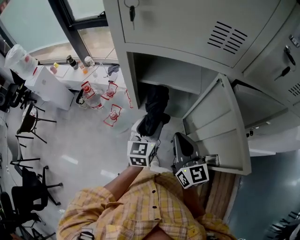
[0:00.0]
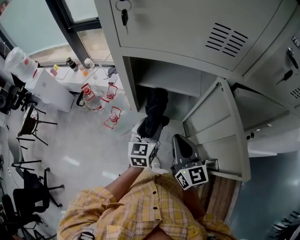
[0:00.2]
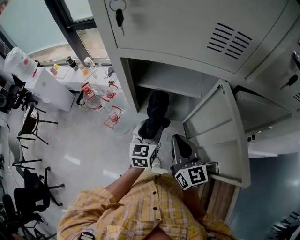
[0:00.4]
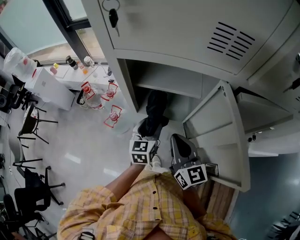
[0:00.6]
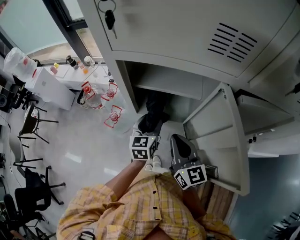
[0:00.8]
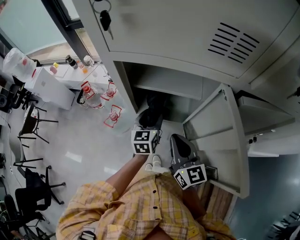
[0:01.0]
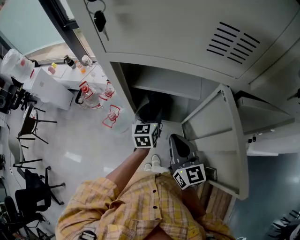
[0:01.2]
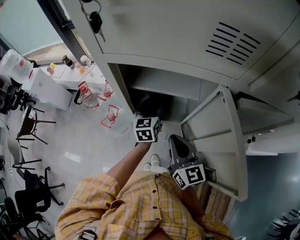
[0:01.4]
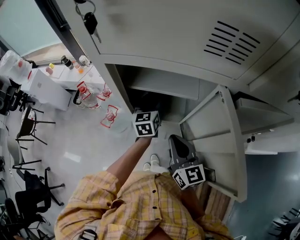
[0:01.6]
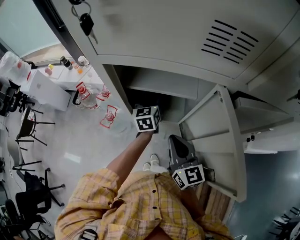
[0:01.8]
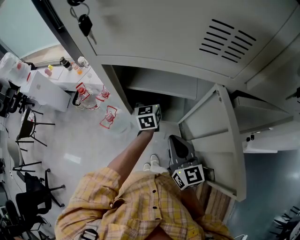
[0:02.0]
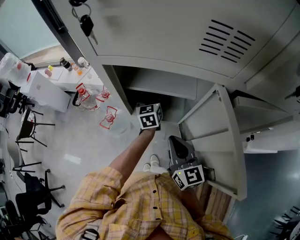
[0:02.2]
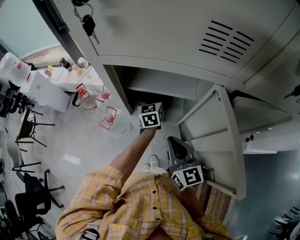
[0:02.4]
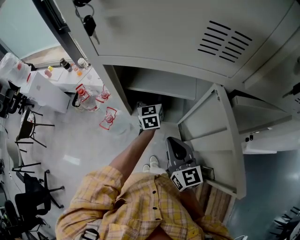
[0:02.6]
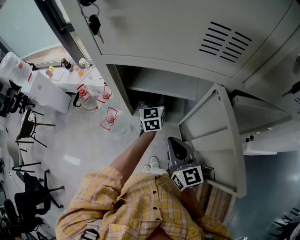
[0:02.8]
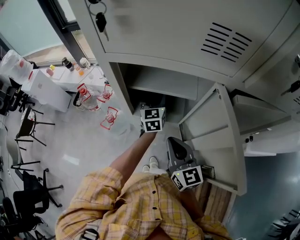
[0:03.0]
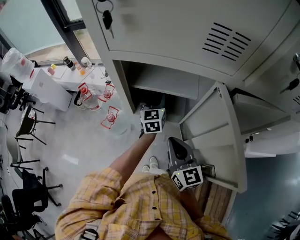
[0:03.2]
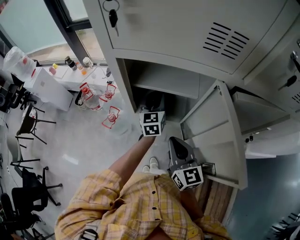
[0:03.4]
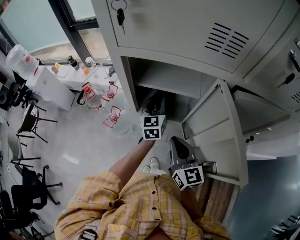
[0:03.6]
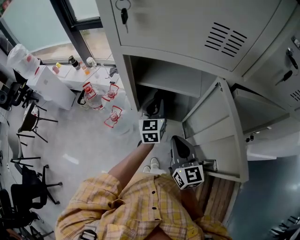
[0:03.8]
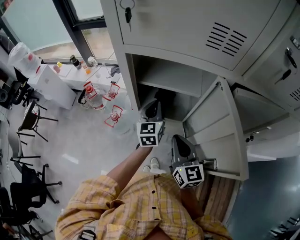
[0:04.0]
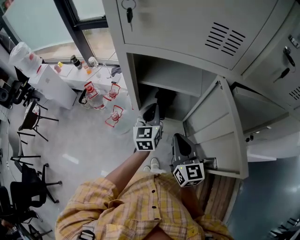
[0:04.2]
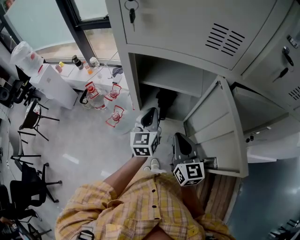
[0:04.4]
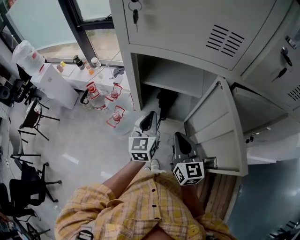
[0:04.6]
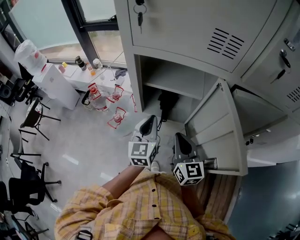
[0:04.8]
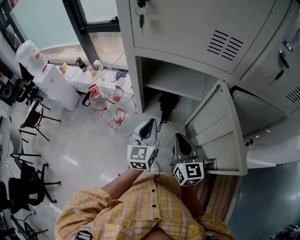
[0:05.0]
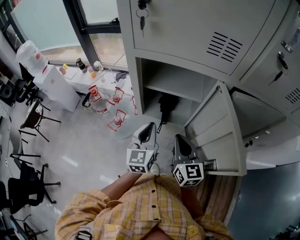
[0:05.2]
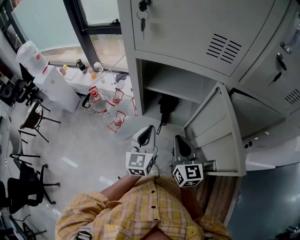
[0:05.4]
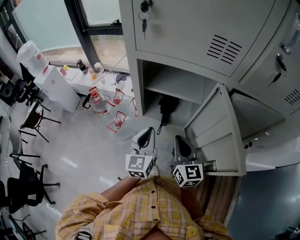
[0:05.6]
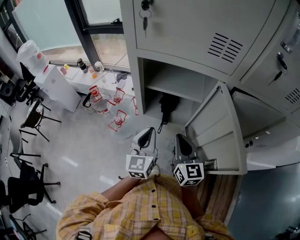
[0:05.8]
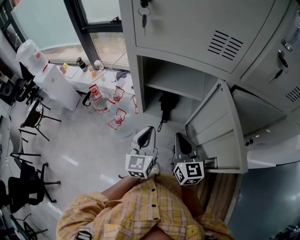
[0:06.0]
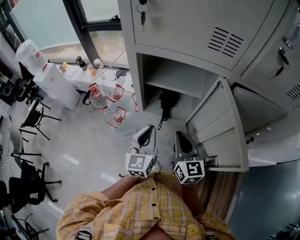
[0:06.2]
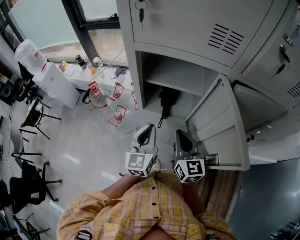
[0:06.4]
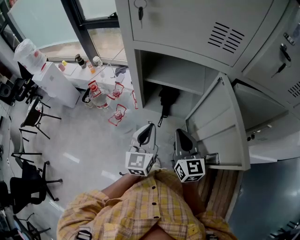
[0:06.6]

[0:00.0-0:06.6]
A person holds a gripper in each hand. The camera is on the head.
0.0 to 1.6 s: The right gripper moves approximately 5 cm. The left gripper travels forward by roughly 15 cm.
1.6 to 3.2 s: The grippers stay close to where they were, moving slightly.
3.2 to 5.0 s: The left gripper shifts about 20 cm backward and to the left, and closes.
5.0 to 6.6 s: The grippers make only small movements.

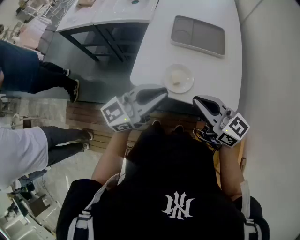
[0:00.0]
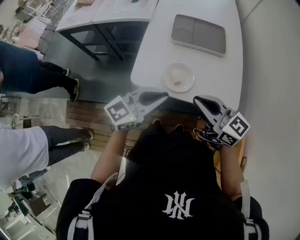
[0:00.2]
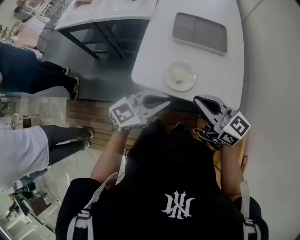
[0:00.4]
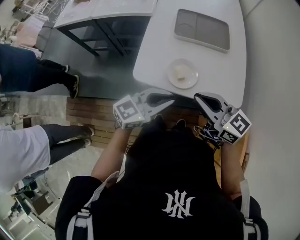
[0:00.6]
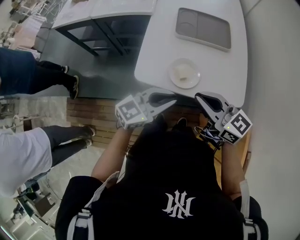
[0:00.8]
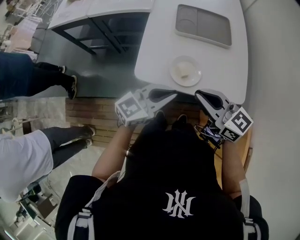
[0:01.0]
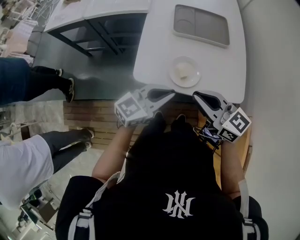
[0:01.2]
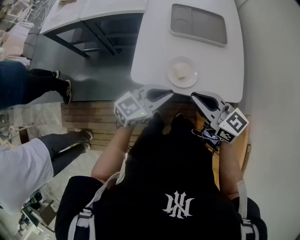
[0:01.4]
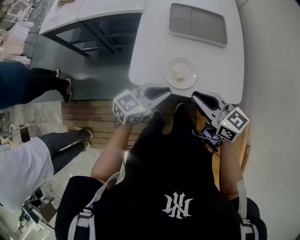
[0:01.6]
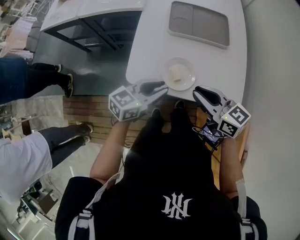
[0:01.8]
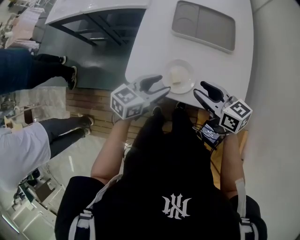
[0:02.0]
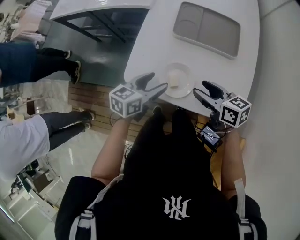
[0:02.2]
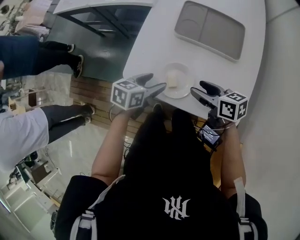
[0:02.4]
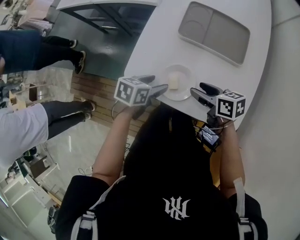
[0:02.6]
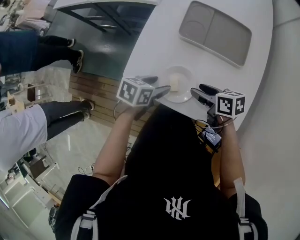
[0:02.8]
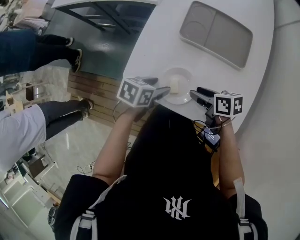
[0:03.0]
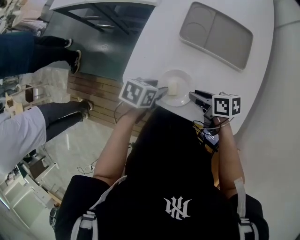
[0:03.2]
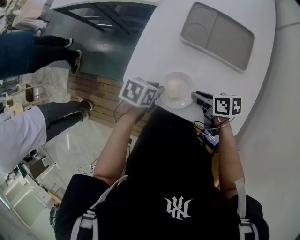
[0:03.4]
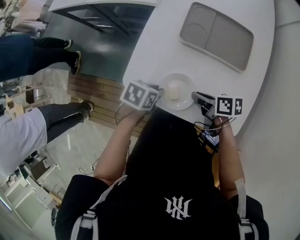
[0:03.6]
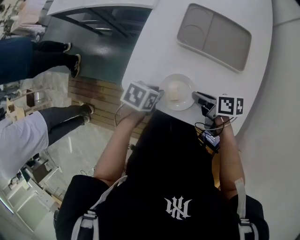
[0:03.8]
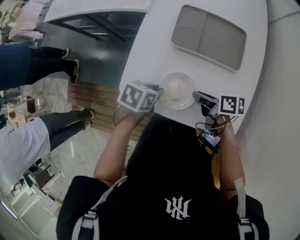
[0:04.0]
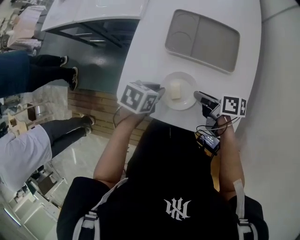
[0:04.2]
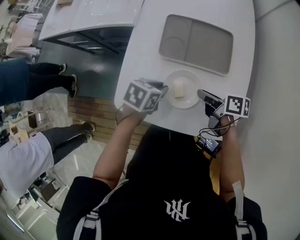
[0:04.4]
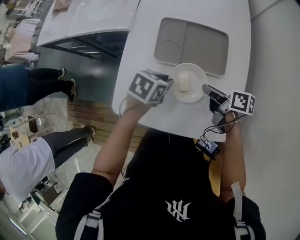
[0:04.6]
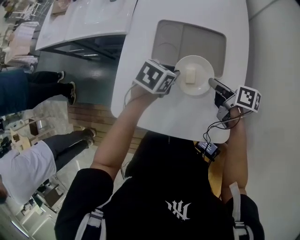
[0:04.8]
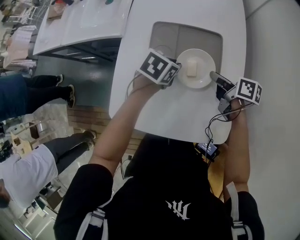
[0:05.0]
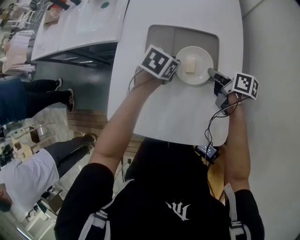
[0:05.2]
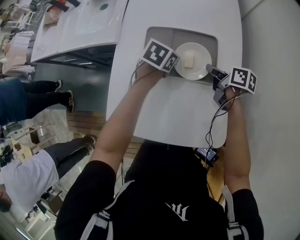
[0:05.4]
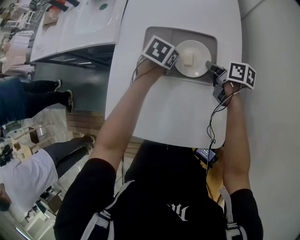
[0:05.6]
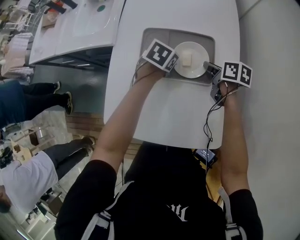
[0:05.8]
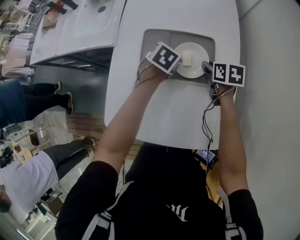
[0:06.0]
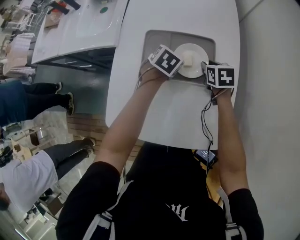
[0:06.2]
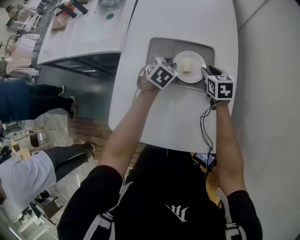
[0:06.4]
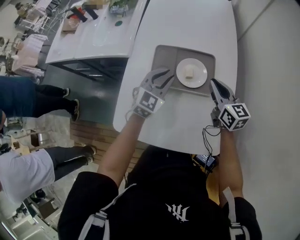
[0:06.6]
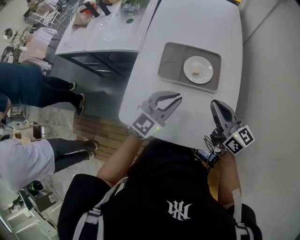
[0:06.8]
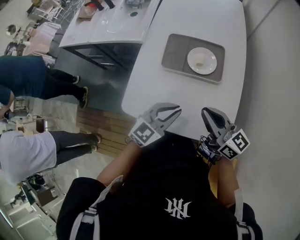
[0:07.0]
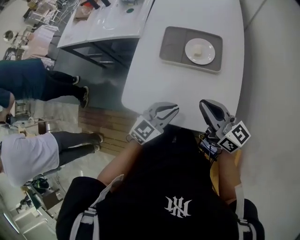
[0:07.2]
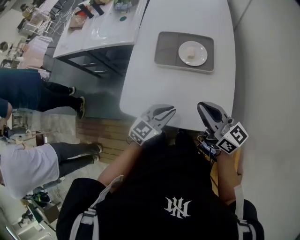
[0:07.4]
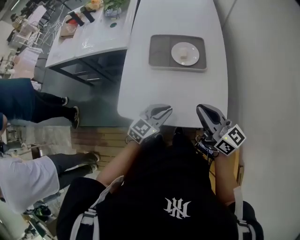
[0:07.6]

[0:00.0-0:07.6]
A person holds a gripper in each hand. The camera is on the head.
0.0 to 1.6 s: The left gripper shifts about 15 cm downward, and swivels some 30 degrees. Meanwhile the right gripper goes roughly 5 cm downward.
1.6 to 3.0 s: Both grippers travel together downward, approximately 15 cm. The left gripper tilts its fingers some 40 degrees downward, and opens. The right gripper changes its angle by some 40 degrees, and opens up.
3.0 to 4.6 s: The left gripper changes place by roughly 15 cm, and closes its fingers; the right gripper ends up about 15 cm from where it was, changes its angle by about 30 degrees, and closes up.
4.6 to 6.0 s: Both grippers travel together forward, approximately 15 cm. The right gripper changes its angle by about 40 degrees.
6.0 to 7.6 s: The left gripper travels backward by some 35 cm, and tips its fingers upward by approximately 40 degrees, while the right gripper travels backward and upward by approximately 40 cm, and tips its fingers upward by roughly 50 degrees.

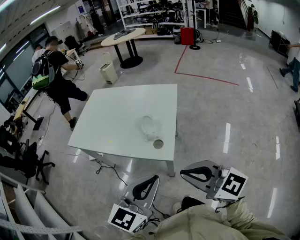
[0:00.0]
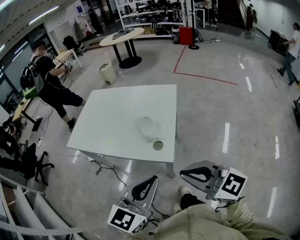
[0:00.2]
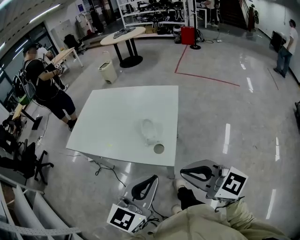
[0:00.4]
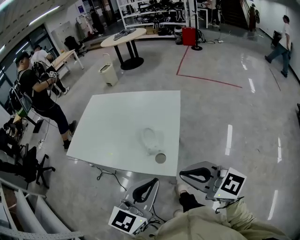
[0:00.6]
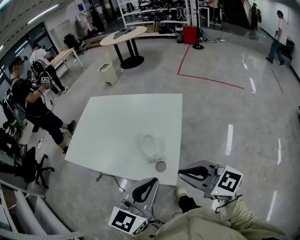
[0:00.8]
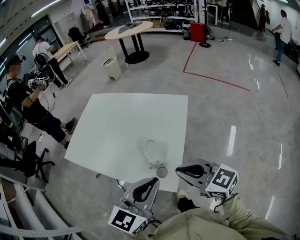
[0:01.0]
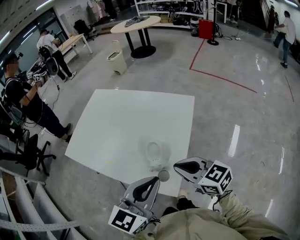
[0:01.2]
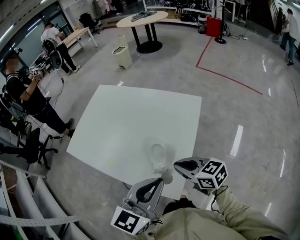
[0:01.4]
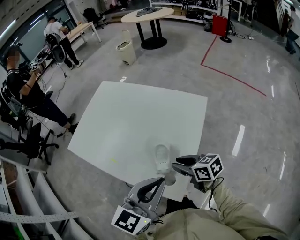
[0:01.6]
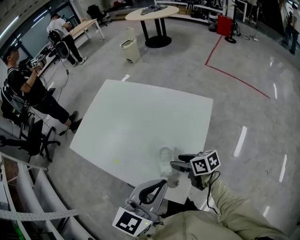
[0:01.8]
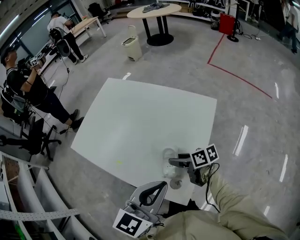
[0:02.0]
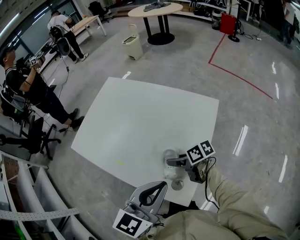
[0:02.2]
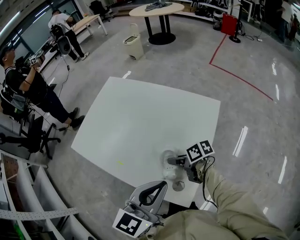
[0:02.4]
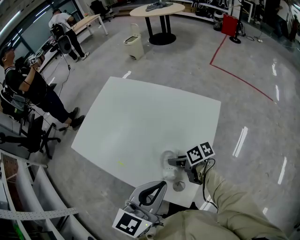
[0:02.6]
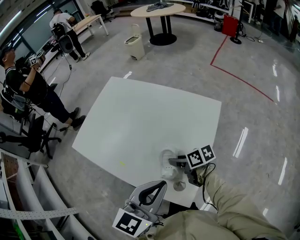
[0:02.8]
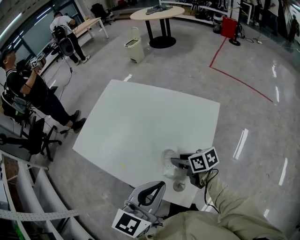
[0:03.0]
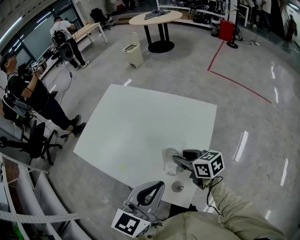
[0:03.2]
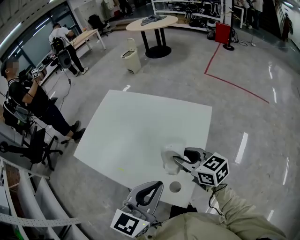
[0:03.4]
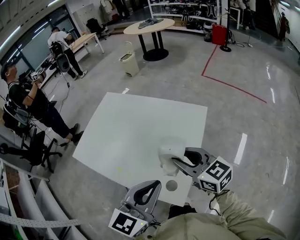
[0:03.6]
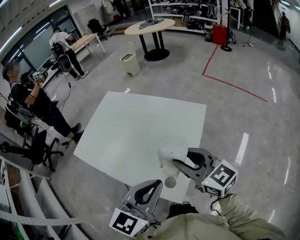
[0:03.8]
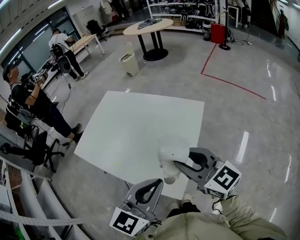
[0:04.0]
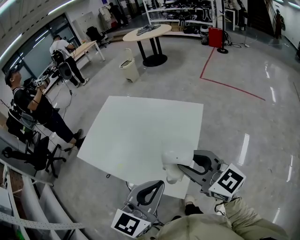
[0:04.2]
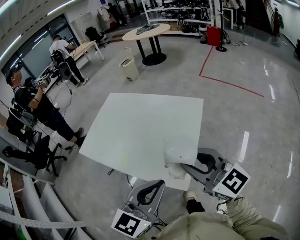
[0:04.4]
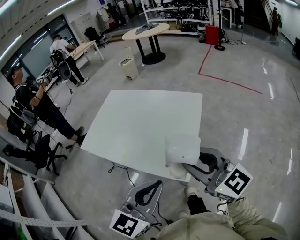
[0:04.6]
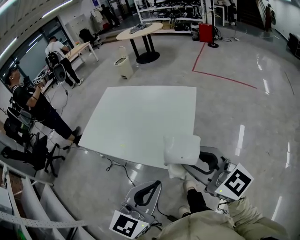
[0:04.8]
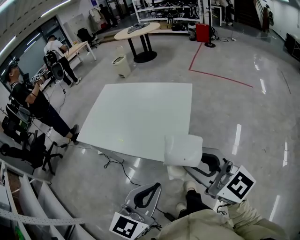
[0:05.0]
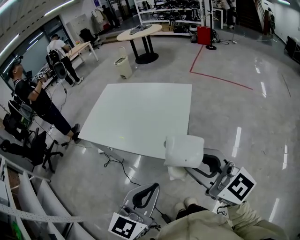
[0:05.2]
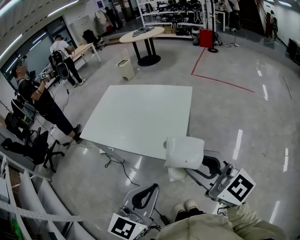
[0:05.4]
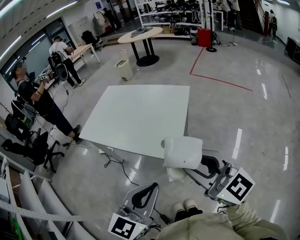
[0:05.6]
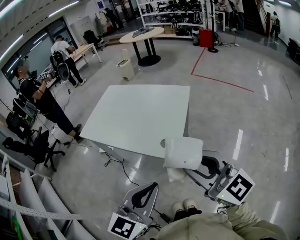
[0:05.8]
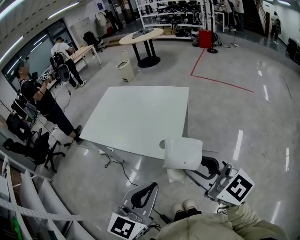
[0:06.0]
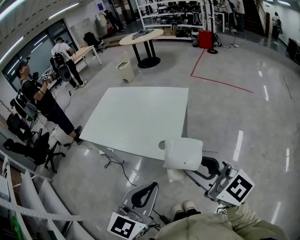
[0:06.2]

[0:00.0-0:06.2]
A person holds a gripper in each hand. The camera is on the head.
0.0 to 1.6 s: The right gripper shifts some 35 cm forward and downward, swivels about 40 degrees, and opens up. The left gripper shifts some 20 cm forward.
1.6 to 3.2 s: The left gripper ends up roughly 5 cm from where it was. The right gripper shifts approximately 10 cm forward, reaches approximately 5 cm downward, then returns, and opens, then closes again.
3.2 to 4.6 s: The left gripper travels backward by about 15 cm. Meanwhile the right gripper heads upward and backward, covering some 30 cm, and swivels approximately 40 degrees.
4.6 to 6.2 s: Both grippers travel together backward, some 15 cm.

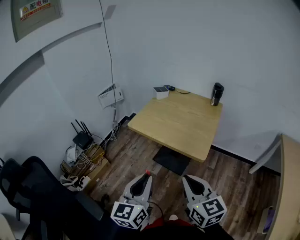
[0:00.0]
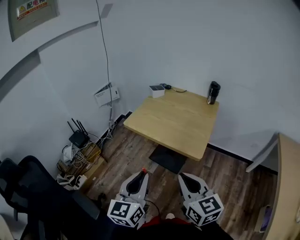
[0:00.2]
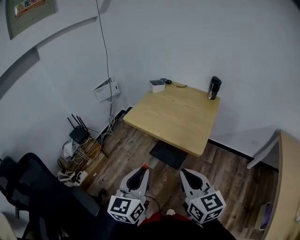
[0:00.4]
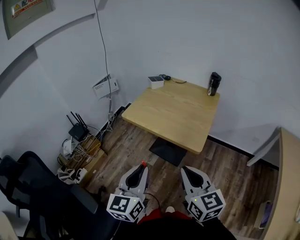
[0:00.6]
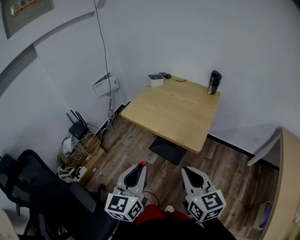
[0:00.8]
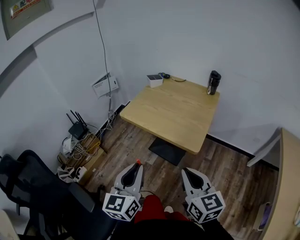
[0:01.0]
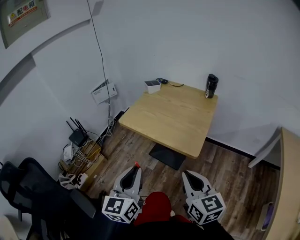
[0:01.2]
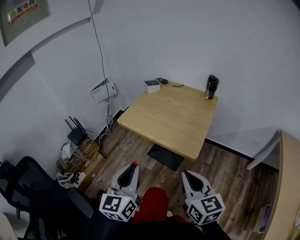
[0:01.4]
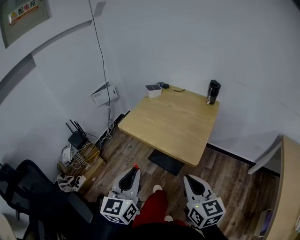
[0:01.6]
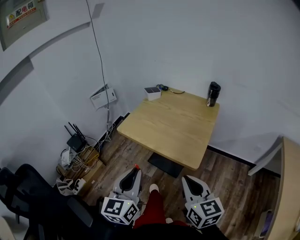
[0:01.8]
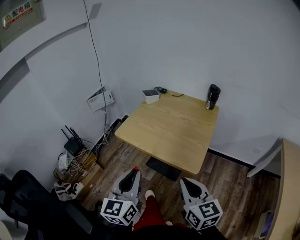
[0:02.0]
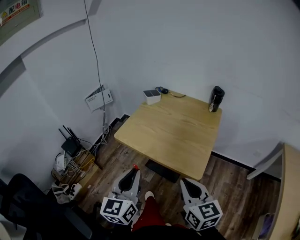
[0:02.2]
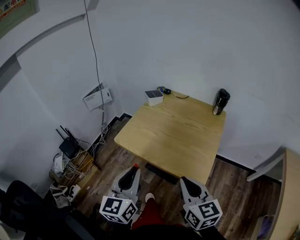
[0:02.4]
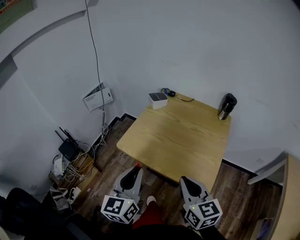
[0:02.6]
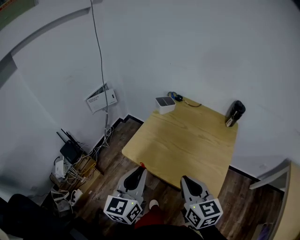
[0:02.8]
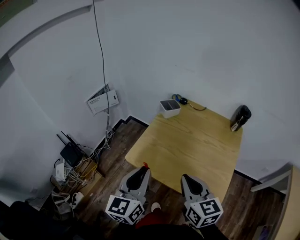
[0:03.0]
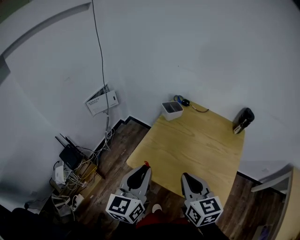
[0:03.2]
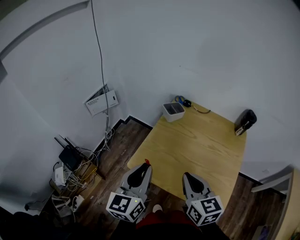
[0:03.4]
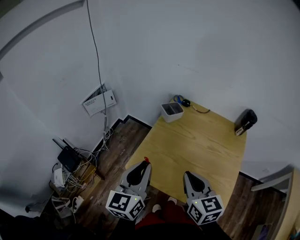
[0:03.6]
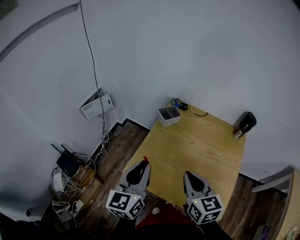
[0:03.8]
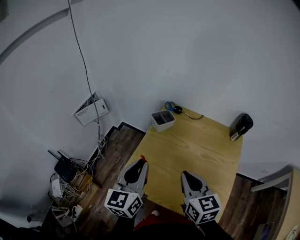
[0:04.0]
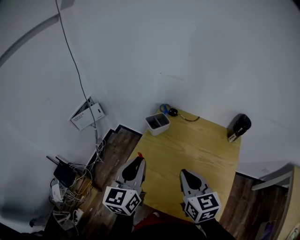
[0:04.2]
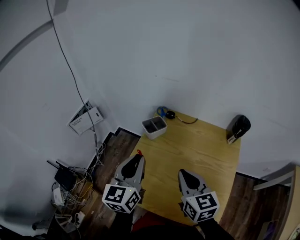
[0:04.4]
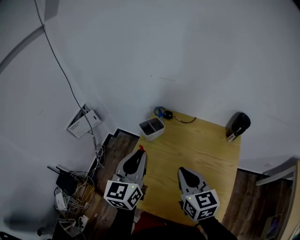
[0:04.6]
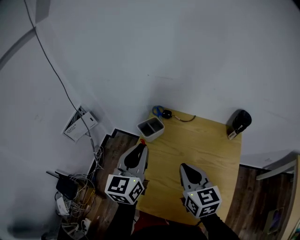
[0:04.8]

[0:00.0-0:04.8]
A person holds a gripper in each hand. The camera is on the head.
0.0 to 1.6 s: The right gripper travels to the right by about 5 cm. Meanwhile the left gripper heads forward, covering some 5 cm.
1.6 to 3.2 s: The left gripper goes approximately 30 cm forward. Meanwhile the right gripper is displaced forward and to the left by some 35 cm.
3.2 to 4.8 s: Both grippers travel together forward, roughly 20 cm.
